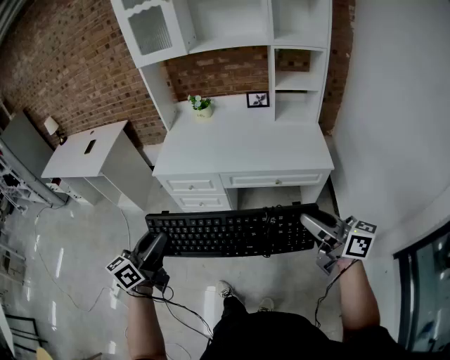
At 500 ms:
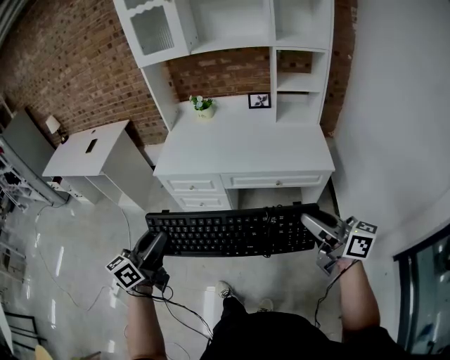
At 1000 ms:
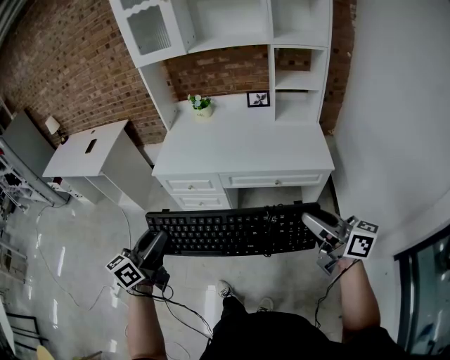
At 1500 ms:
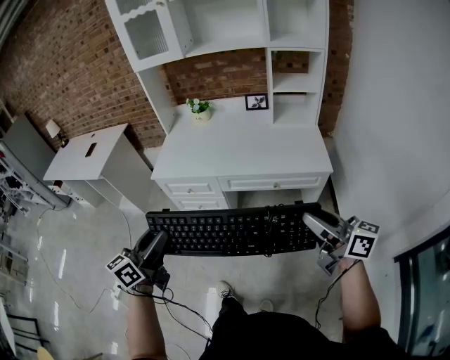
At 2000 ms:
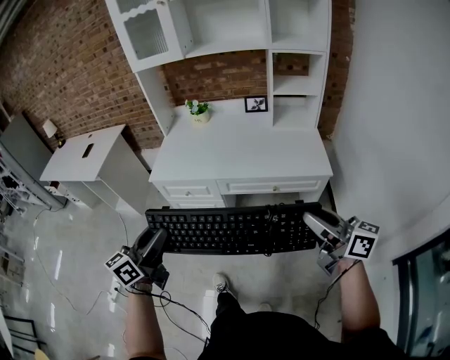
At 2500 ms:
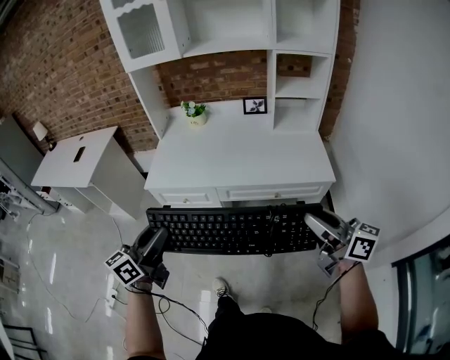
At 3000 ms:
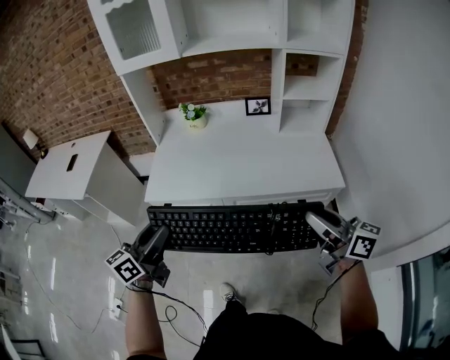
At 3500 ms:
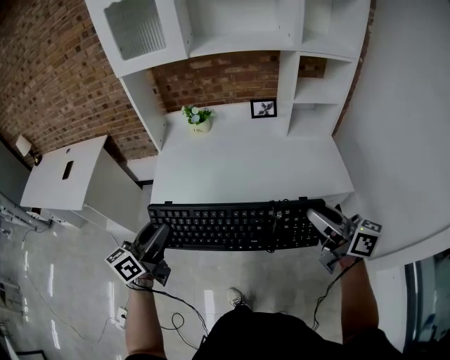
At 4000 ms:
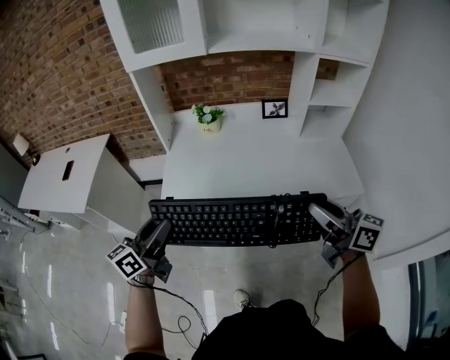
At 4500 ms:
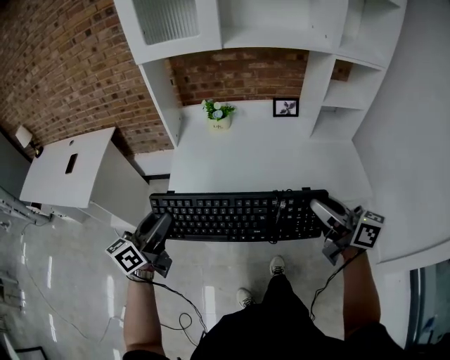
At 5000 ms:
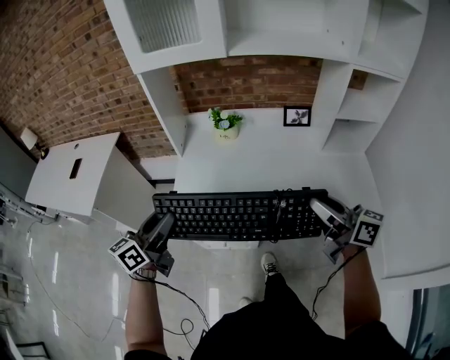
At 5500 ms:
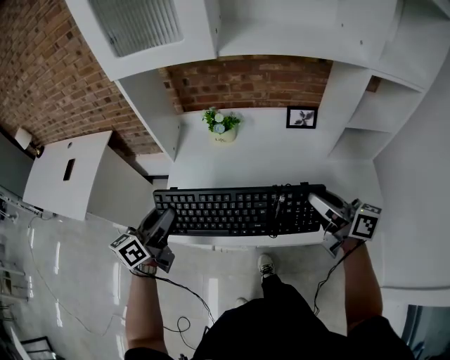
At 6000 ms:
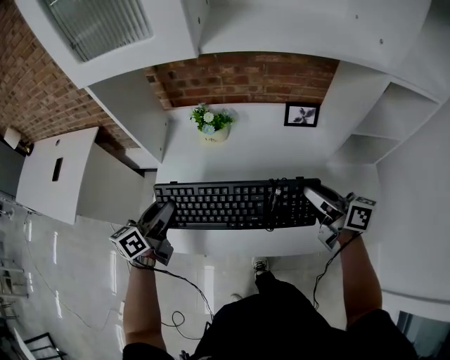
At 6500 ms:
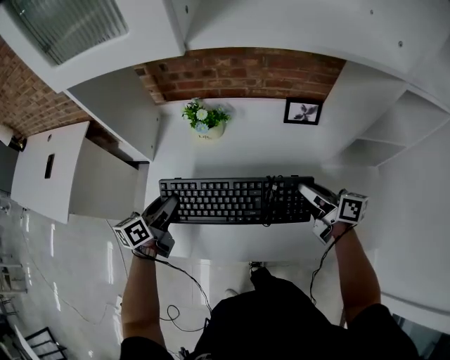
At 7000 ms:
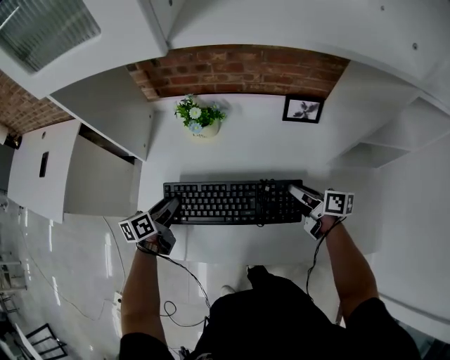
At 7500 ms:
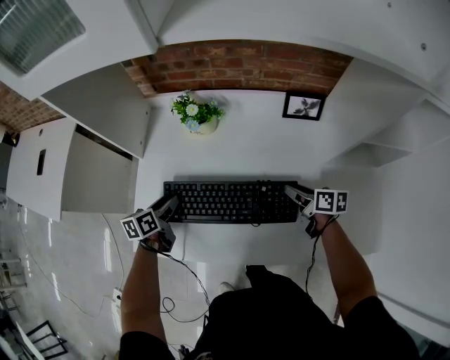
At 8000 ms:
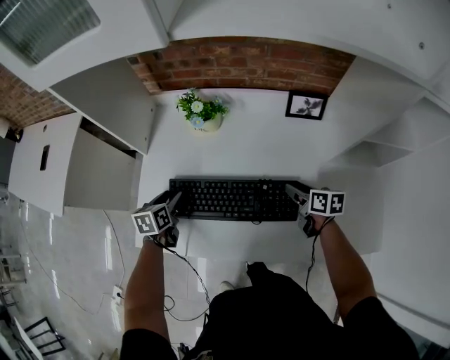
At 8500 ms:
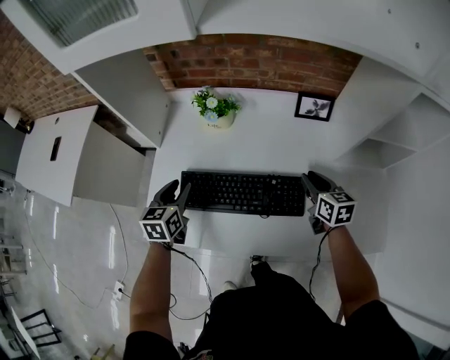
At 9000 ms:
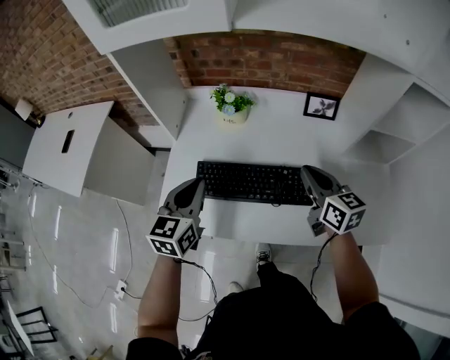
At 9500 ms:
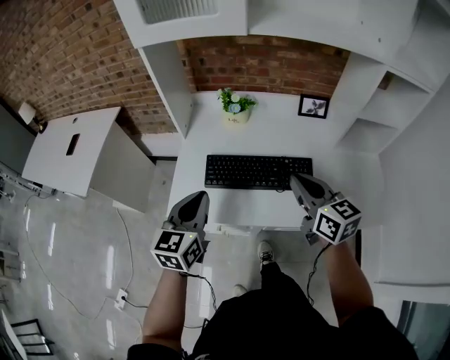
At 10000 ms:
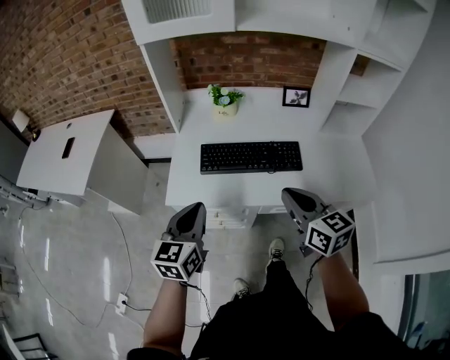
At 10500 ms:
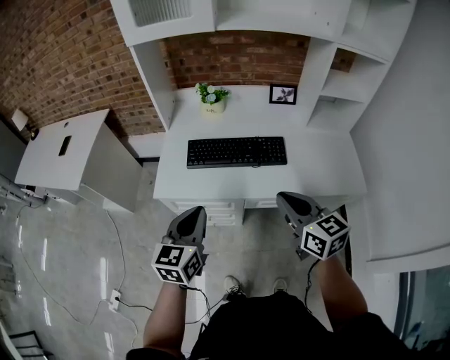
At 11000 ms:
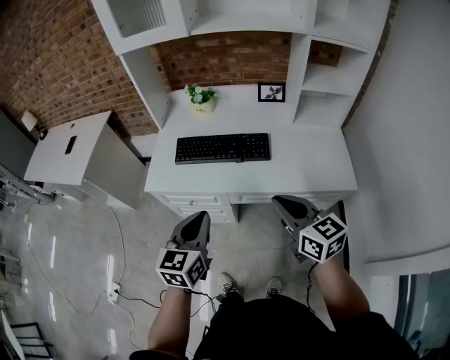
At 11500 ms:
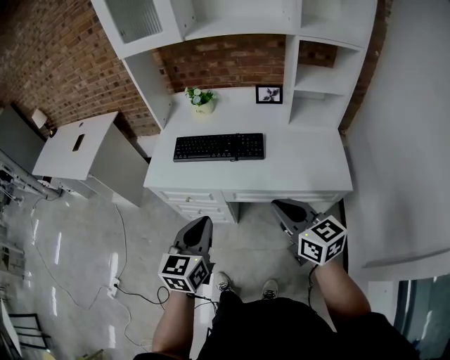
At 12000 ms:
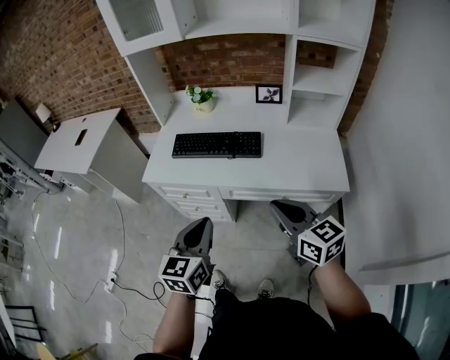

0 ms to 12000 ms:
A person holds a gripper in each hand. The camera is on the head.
0 ms to 2000 ms: The grippers make only small movements.
2000 ms to 4000 ms: The two grippers go some 35 cm forward and to the left.
4000 ms to 6000 ms: The two grippers go some 30 cm forward.
6000 ms to 8000 ms: Both grippers travel together downward, about 20 cm. The left gripper points its fingers about 30 degrees further downward. The right gripper points its fingers some 30 degrees further downward.
8000 ms to 10000 ms: The left gripper goes approximately 40 cm backward and upward, angles its fingers upward, by roughly 30 degrees, and closes up, while the right gripper is displaced backward, upward and to the left by roughly 40 cm, rotates some 40 degrees, and closes up.
10000 ms to 12000 ms: The right gripper travels backward and to the right by some 25 cm. Meanwhile the left gripper moves to the right and backward, roughly 30 cm.

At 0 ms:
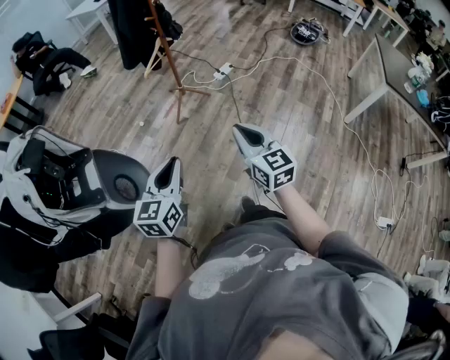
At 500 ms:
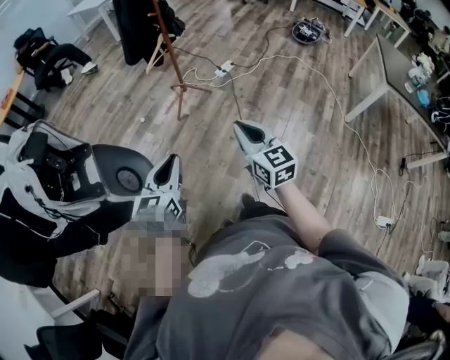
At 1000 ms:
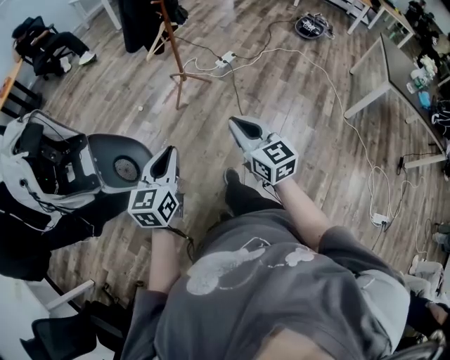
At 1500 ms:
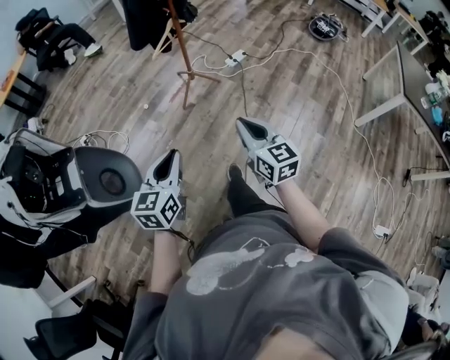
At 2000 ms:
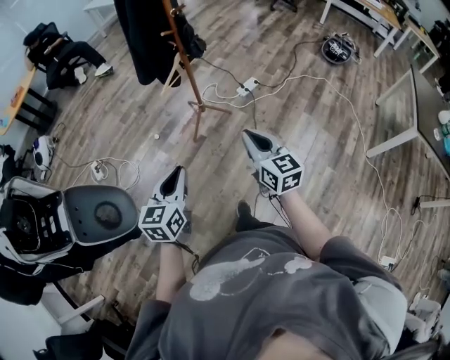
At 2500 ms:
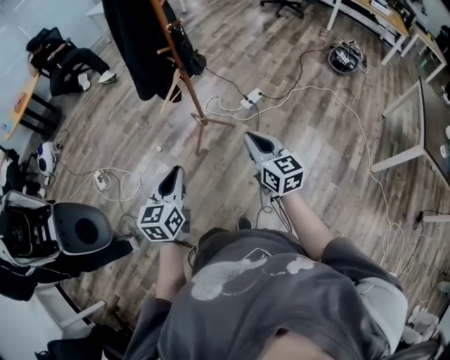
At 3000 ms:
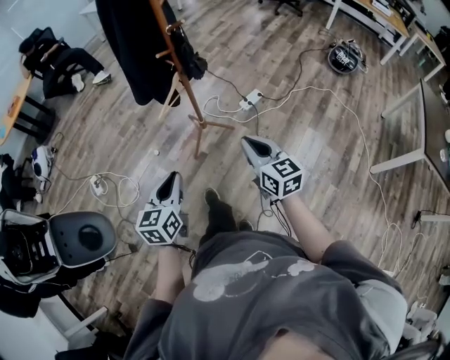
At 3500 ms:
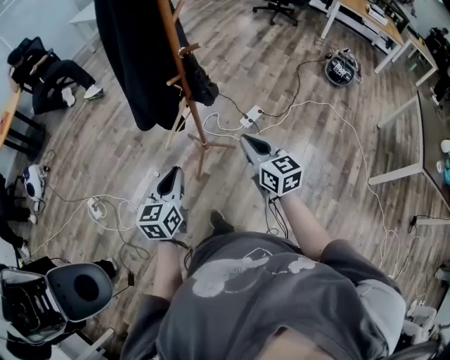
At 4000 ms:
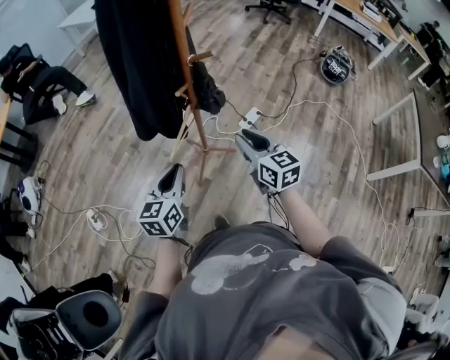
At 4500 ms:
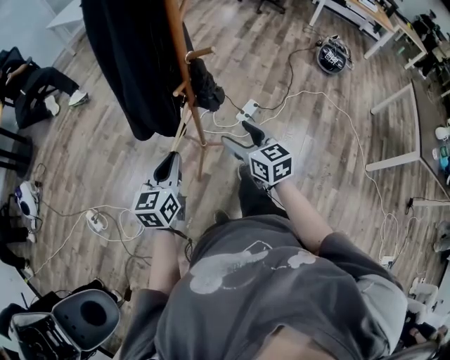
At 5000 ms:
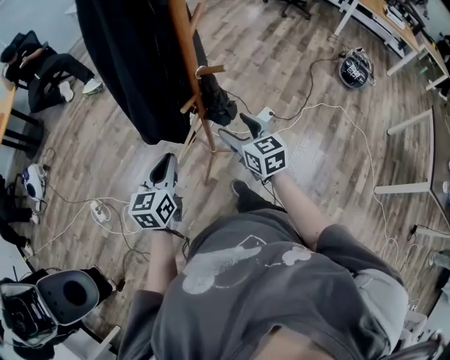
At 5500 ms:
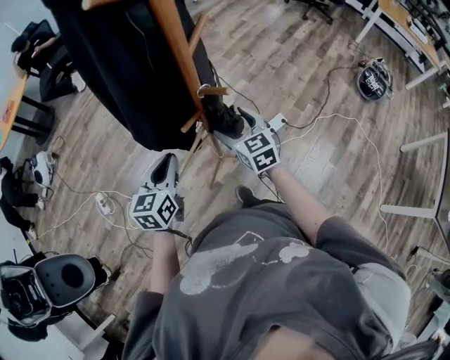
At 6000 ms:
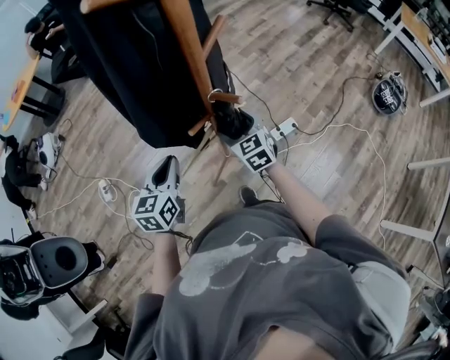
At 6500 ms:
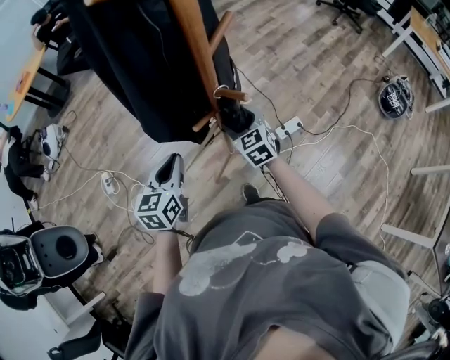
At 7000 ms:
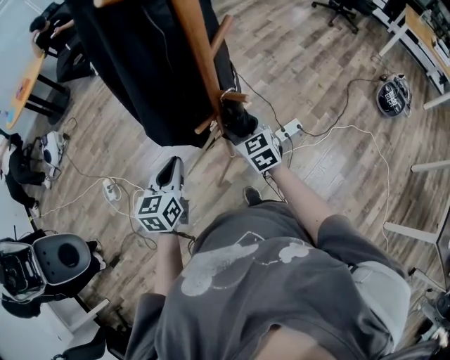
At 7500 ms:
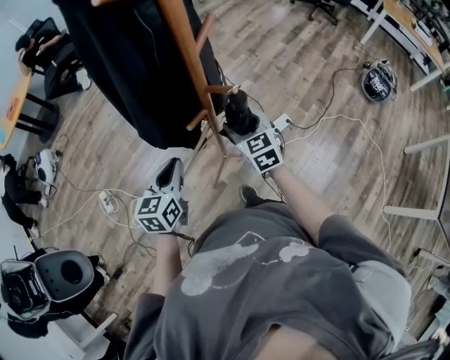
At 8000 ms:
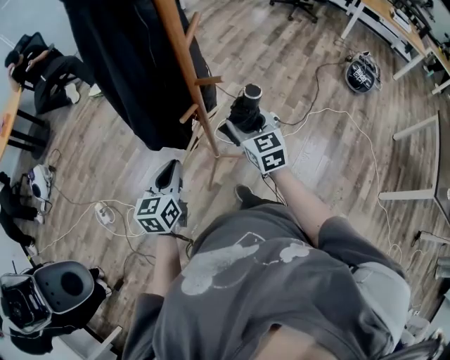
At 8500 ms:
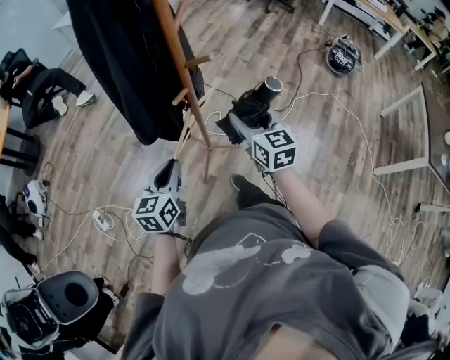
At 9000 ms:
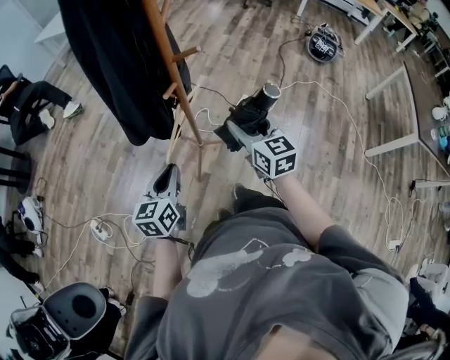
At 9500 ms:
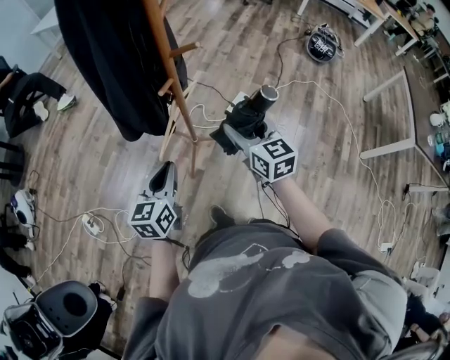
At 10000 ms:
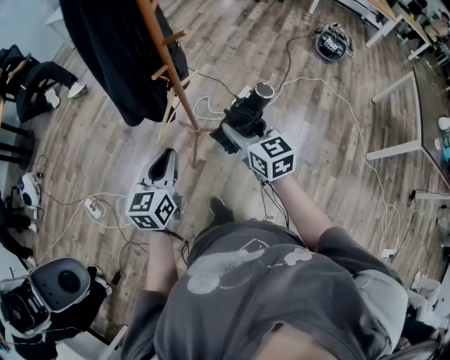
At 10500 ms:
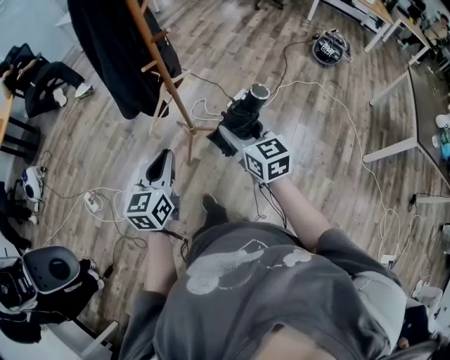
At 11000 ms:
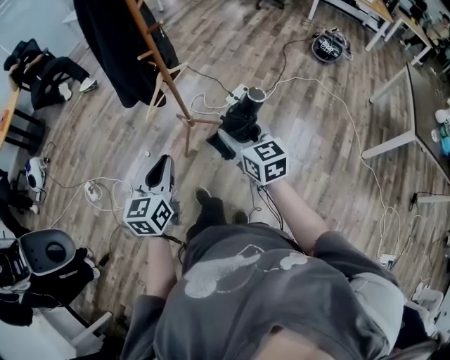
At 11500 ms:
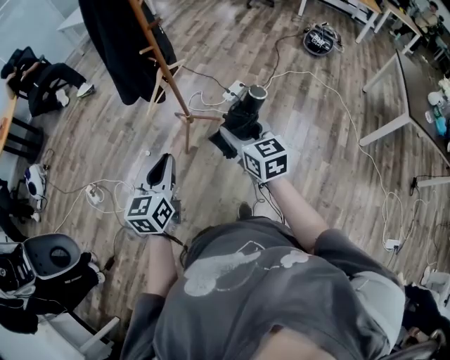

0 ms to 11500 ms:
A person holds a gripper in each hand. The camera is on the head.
0 ms to 2000 ms: The grippers both shift forward by roughly 25 cm.
2000 ms to 4000 ms: Both grippers move forward, approximately 40 cm.
4000 ms to 6000 ms: Both grippers move forward, about 20 cm. The left gripper turns by roughly 20 degrees. The right gripper changes its angle by about 30 degrees, and opens.
6000 ms to 7500 ms: The right gripper changes place by approximately 5 cm.
7500 ms to 9500 ms: The grippers both shift backward by some 15 cm. The right gripper swivels roughly 20 degrees.
9500 ms to 11500 ms: The grippers both shift backward by roughly 30 cm.

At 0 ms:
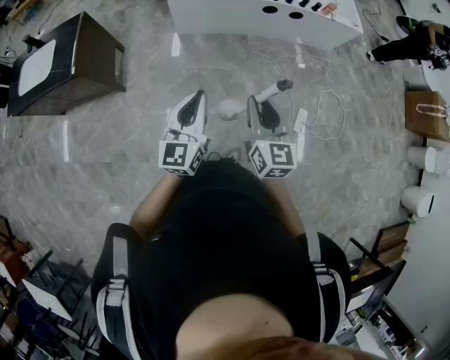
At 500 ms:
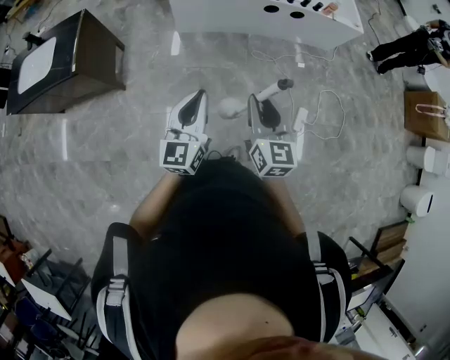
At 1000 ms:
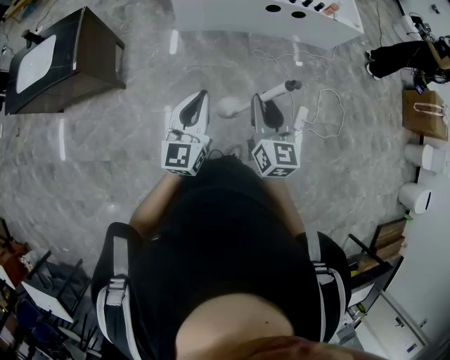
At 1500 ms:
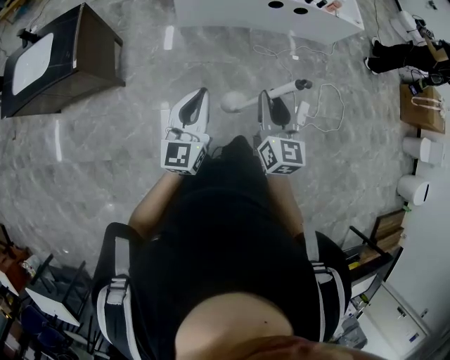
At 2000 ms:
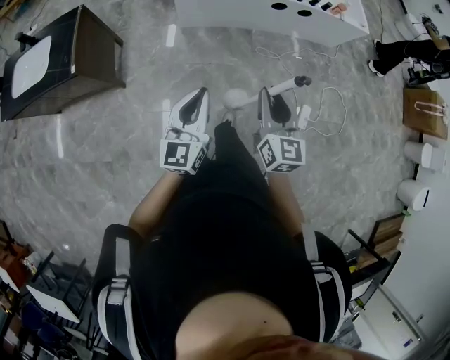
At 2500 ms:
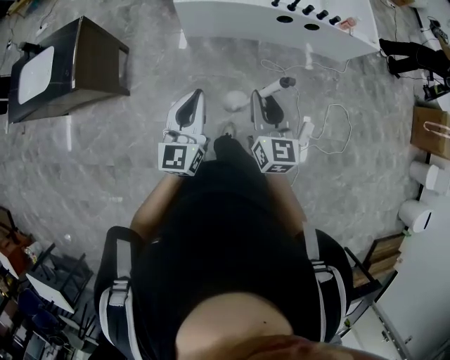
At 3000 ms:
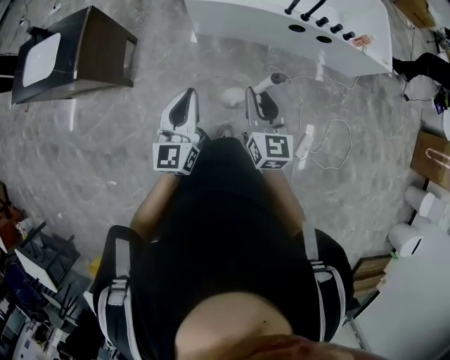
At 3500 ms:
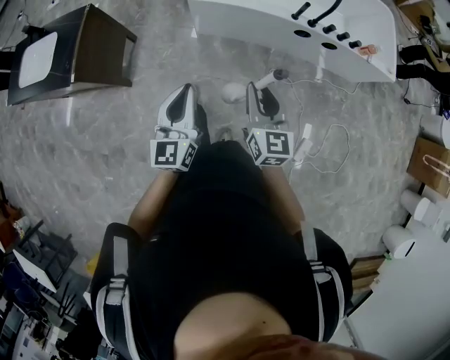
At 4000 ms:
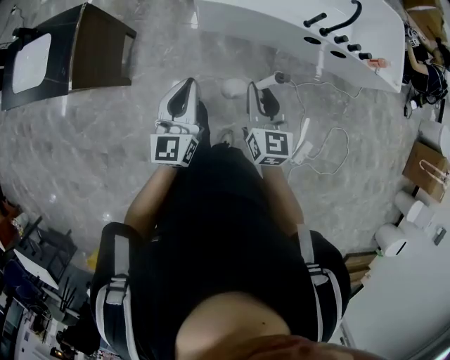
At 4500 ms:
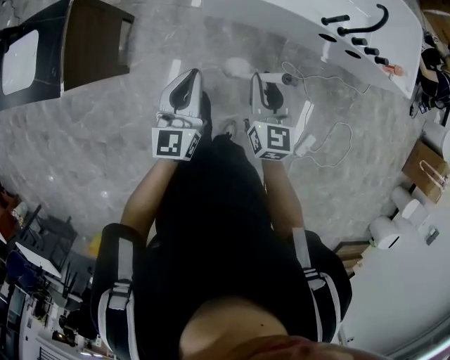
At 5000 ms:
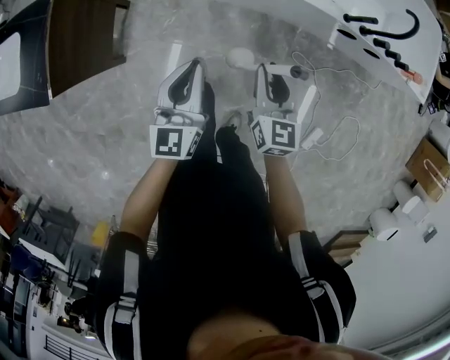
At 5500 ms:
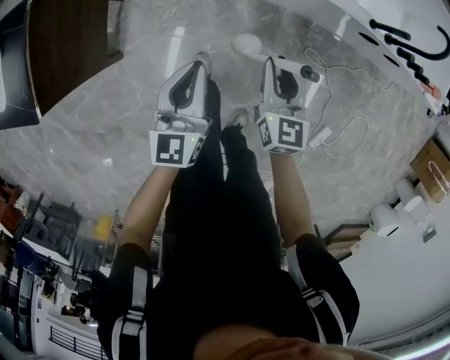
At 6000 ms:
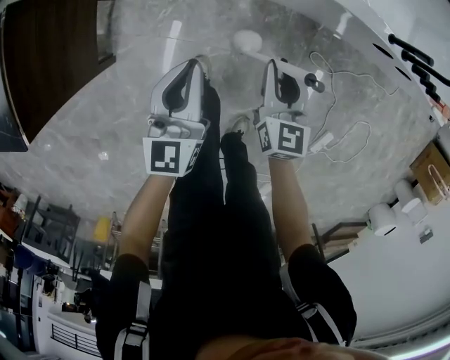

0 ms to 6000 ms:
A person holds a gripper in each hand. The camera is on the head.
0 ms to 2000 ms: The left gripper shifts roughly 10 cm to the left. The right gripper is displaced to the left and forward by approximately 10 cm.
2000 ms to 4000 ms: The grippers both shift forward by roughly 30 cm.
4000 ms to 6000 ms: The grippers both shift downward and forward by approximately 40 cm.
